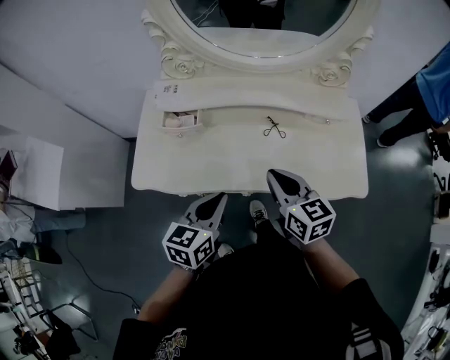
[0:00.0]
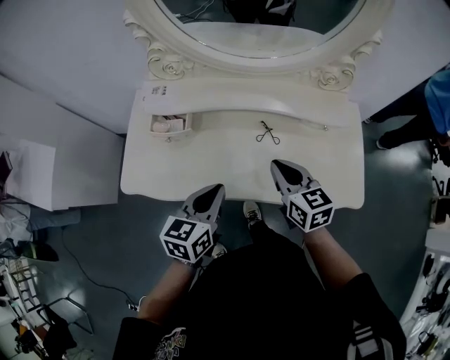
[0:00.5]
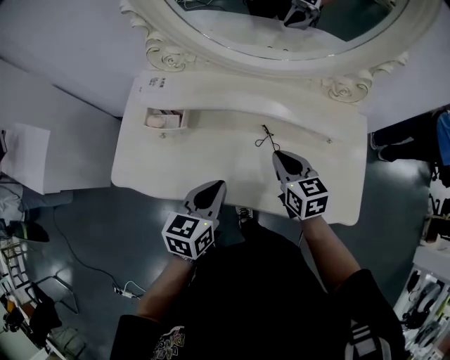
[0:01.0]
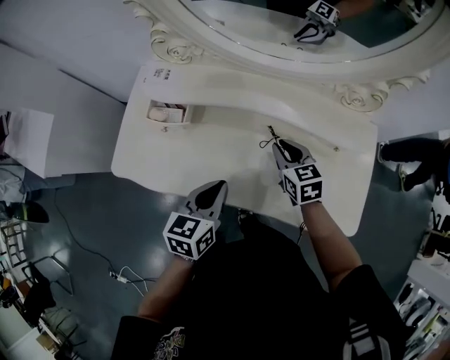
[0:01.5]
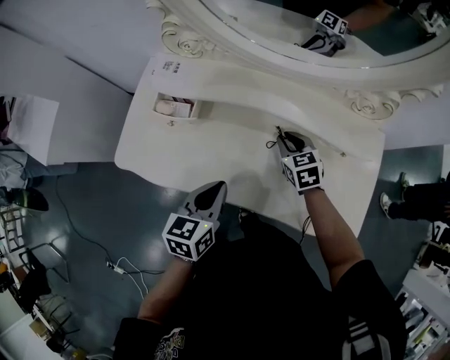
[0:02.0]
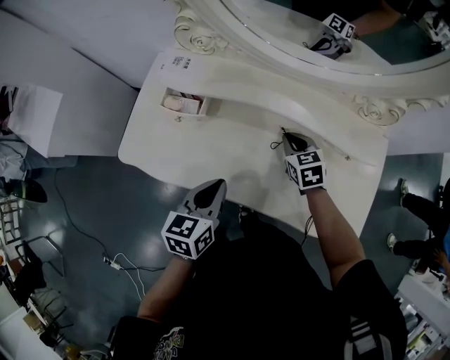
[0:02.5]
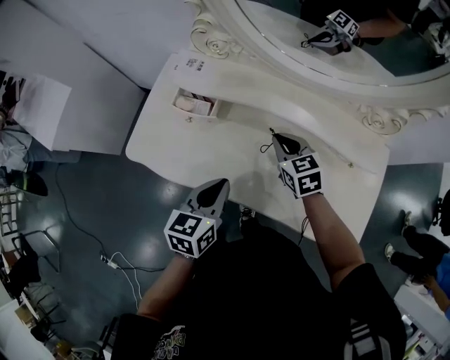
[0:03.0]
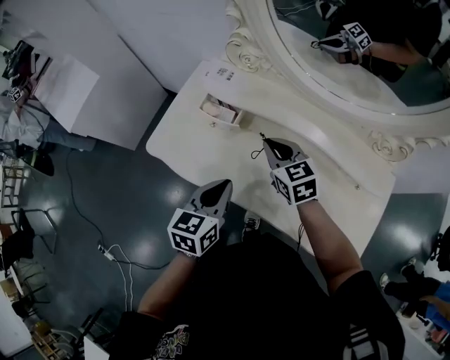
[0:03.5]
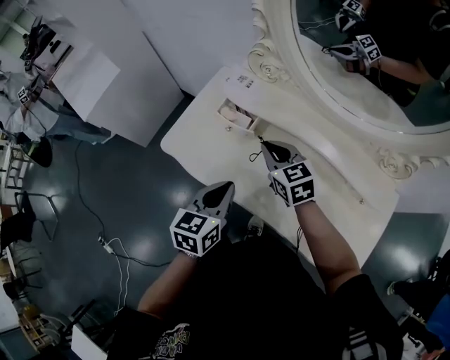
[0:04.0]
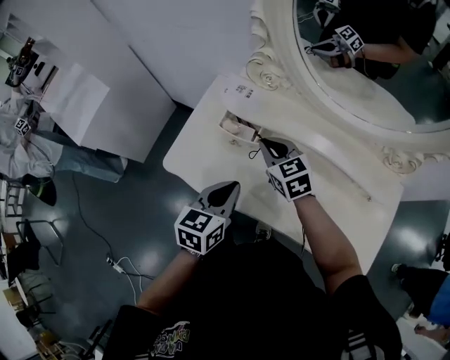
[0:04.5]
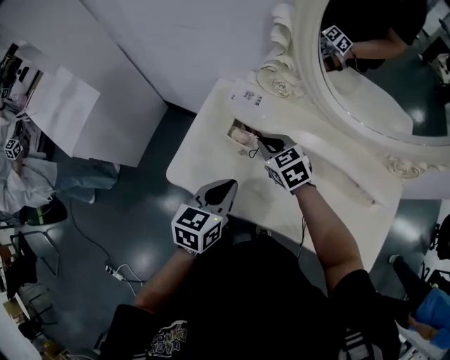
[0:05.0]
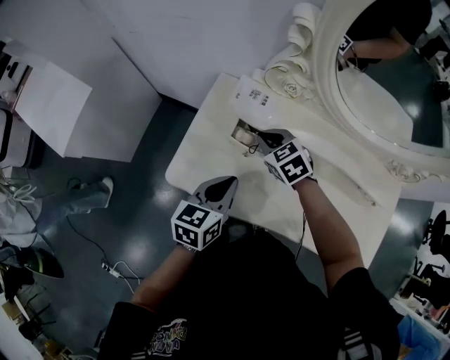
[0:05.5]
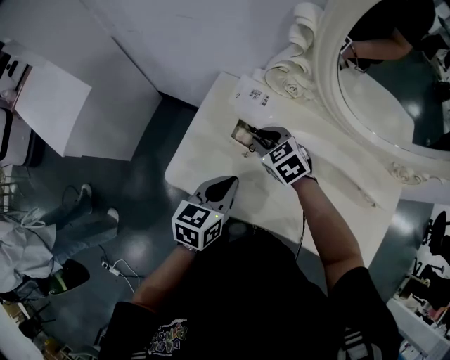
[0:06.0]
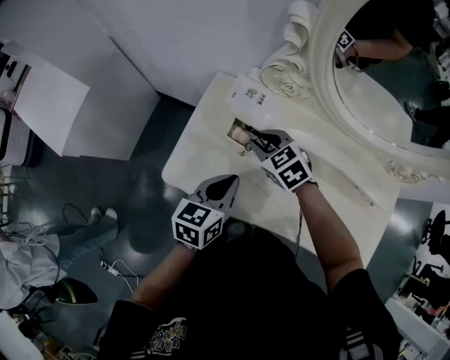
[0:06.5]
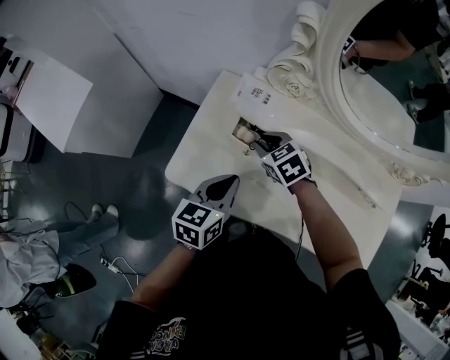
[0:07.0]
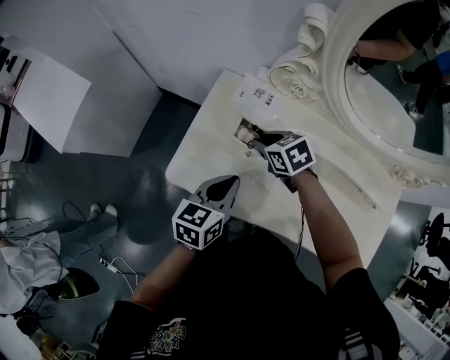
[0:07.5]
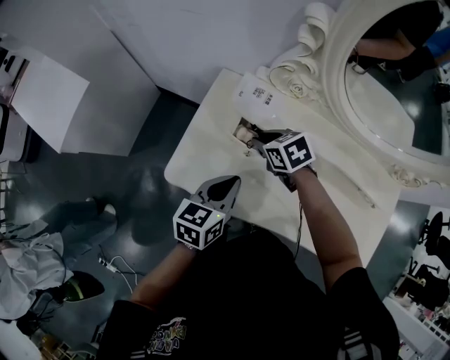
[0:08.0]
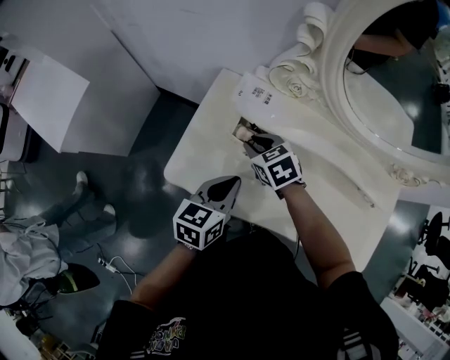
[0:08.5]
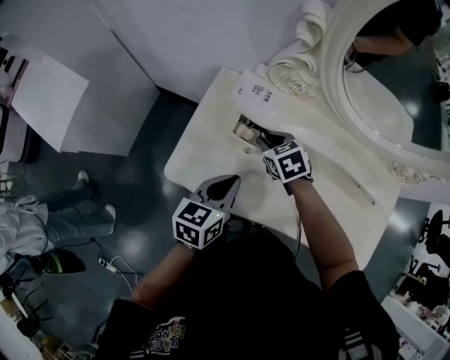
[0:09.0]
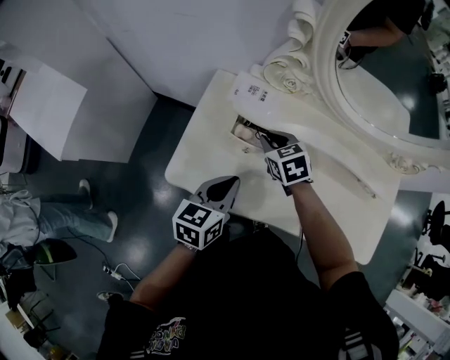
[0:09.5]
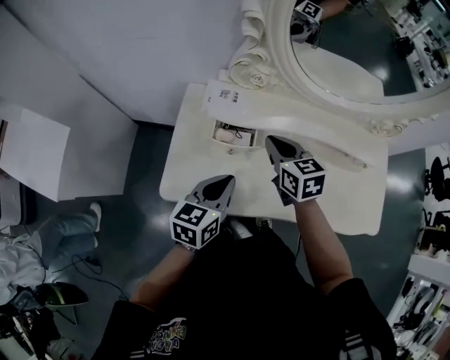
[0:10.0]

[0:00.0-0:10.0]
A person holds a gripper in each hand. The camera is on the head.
0:00.0 to 0:02.0: The right gripper shifts some 25 cm forward and downward, and rotates about 30 degrees. Meanwhile the left gripper heads forward and downward, covering about 10 cm.
0:02.0 to 0:04.0: The left gripper heads to the left and upward, covering about 10 cm; the right gripper moves to the left and upward, about 25 cm, and rotates roughly 30 degrees.
0:04.0 to 0:06.0: The left gripper shifts roughly 15 cm forward and to the left; the right gripper moves forward, to the left and downward, about 20 cm, and rotates approximately 20 degrees.
0:06.0 to 0:08.0: The right gripper turns by approximately 20 degrees.
0:08.0 to 0:10.0: The right gripper moves roughly 15 cm, and swivels roughly 40 degrees.

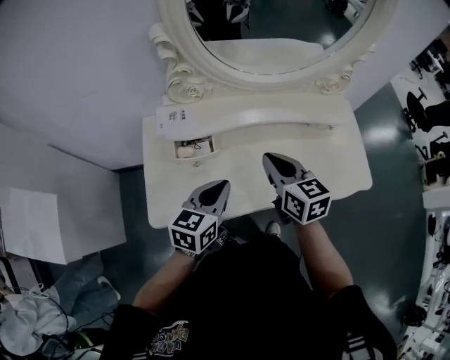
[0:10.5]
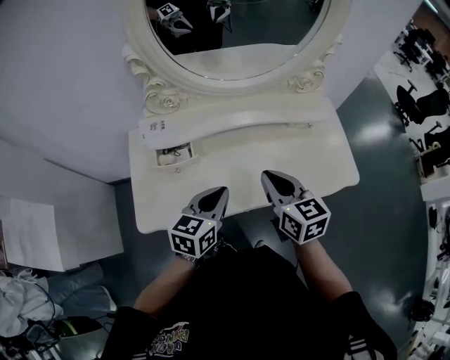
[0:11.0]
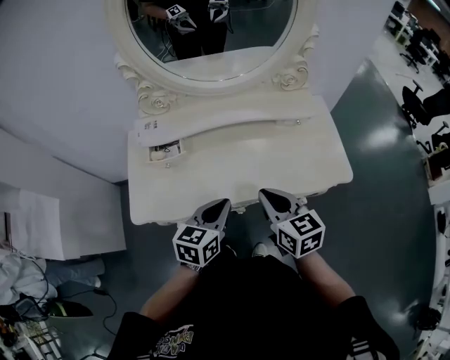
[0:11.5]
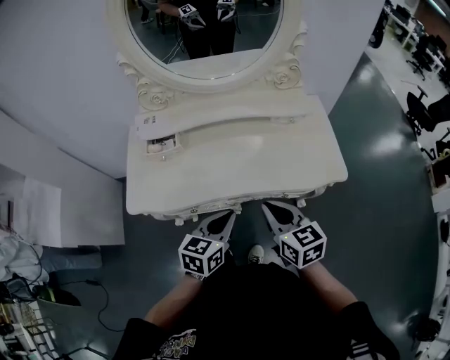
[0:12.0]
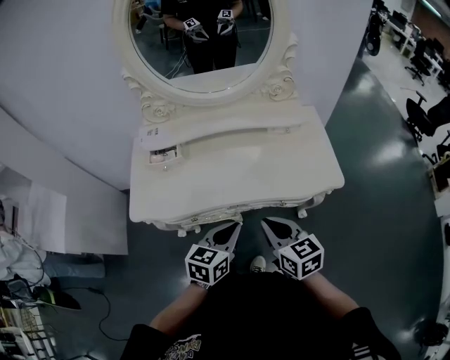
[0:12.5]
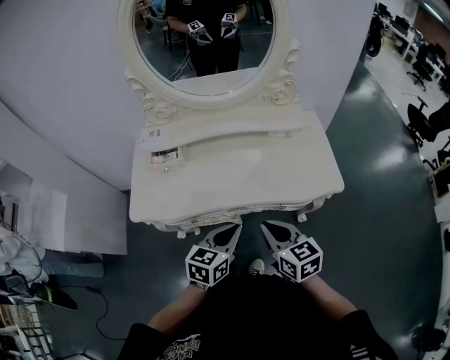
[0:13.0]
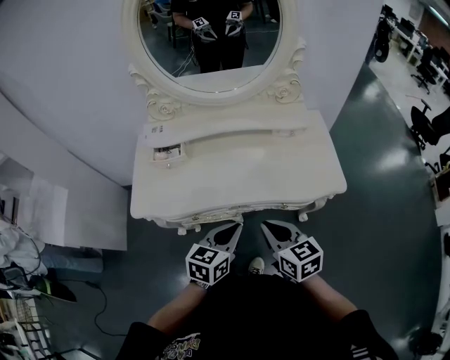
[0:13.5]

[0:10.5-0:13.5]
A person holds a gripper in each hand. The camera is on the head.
0:10.5 to 0:12.0: The left gripper heads to the right and backward, covering some 25 cm; the right gripper shifts approximately 25 cm backward and to the right.
0:12.0 to 0:13.5: The grippers move only a little.

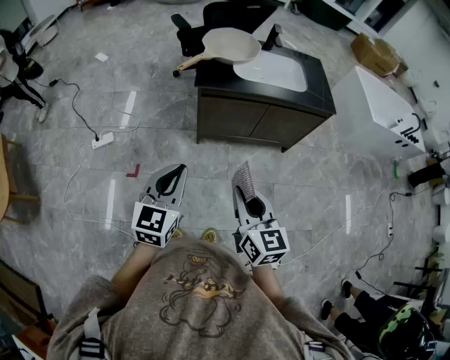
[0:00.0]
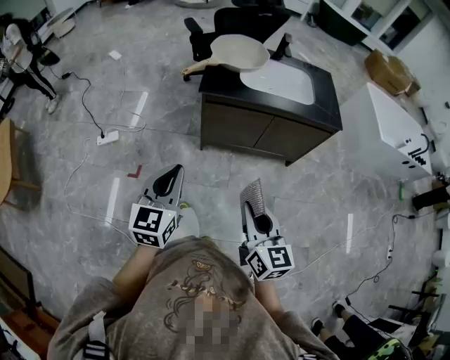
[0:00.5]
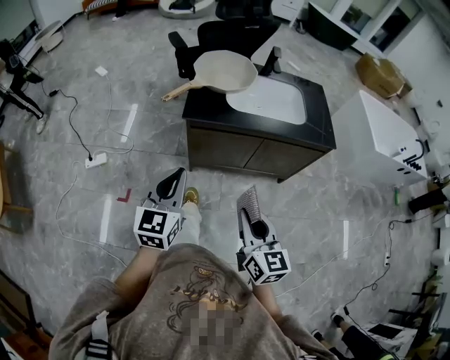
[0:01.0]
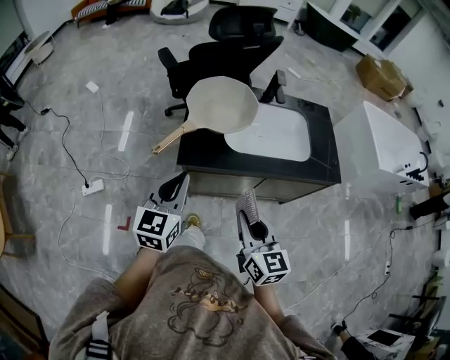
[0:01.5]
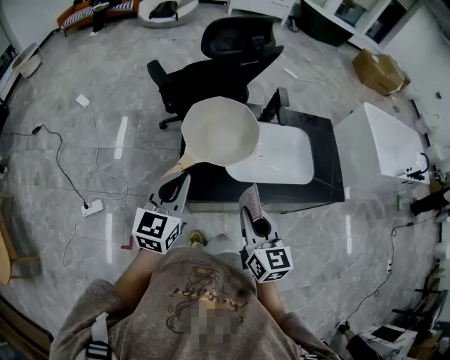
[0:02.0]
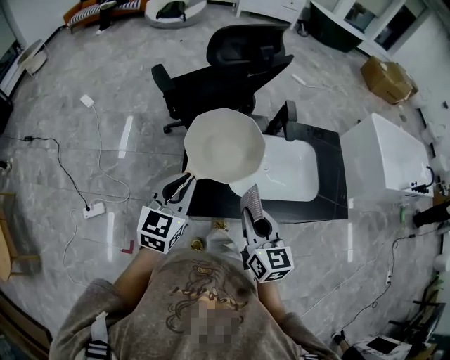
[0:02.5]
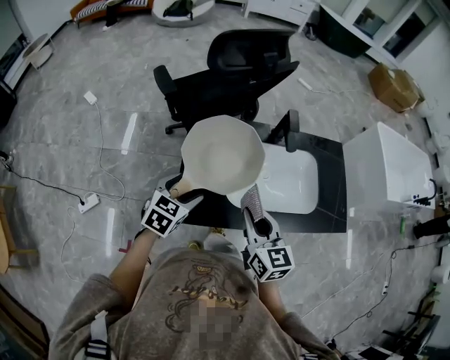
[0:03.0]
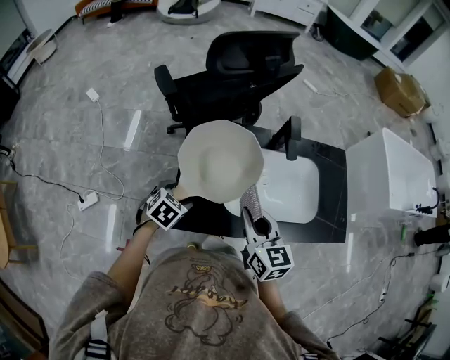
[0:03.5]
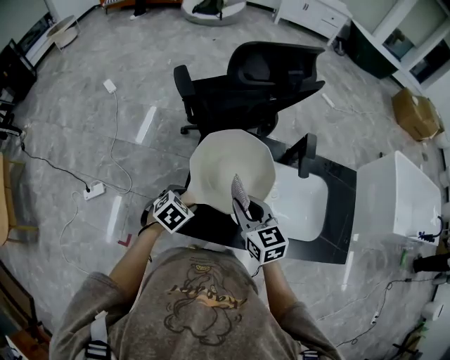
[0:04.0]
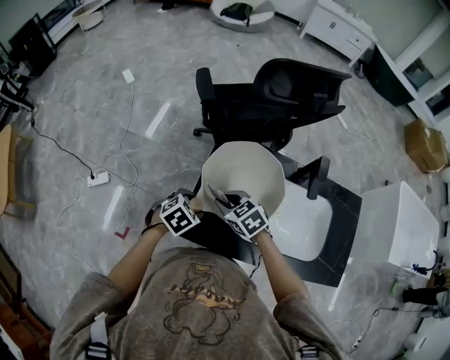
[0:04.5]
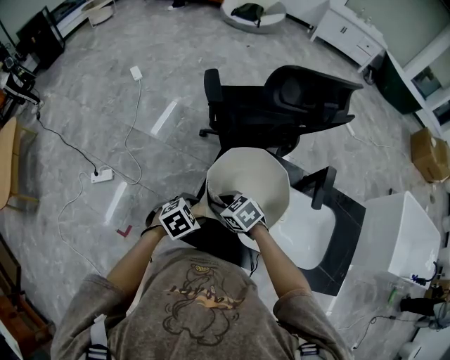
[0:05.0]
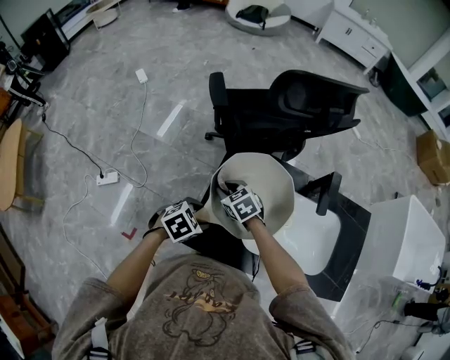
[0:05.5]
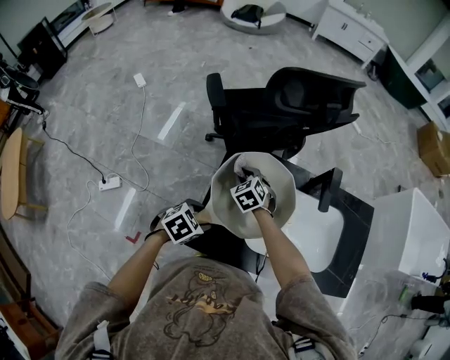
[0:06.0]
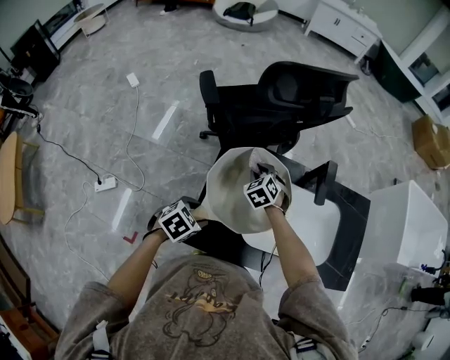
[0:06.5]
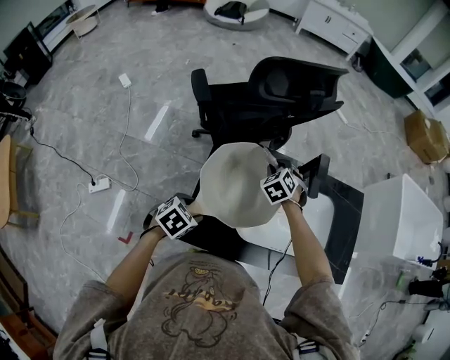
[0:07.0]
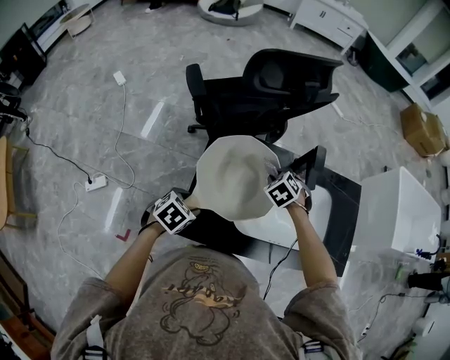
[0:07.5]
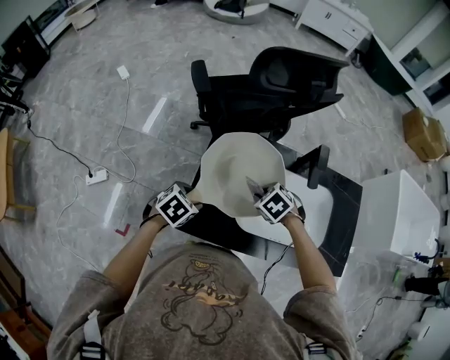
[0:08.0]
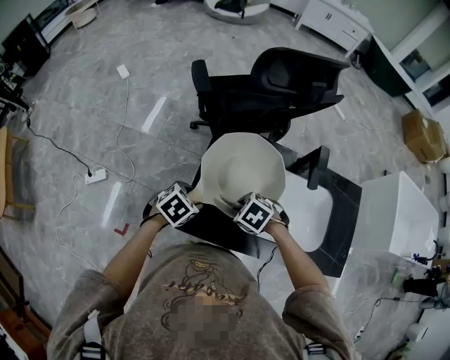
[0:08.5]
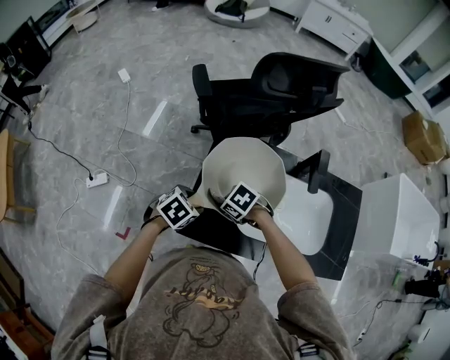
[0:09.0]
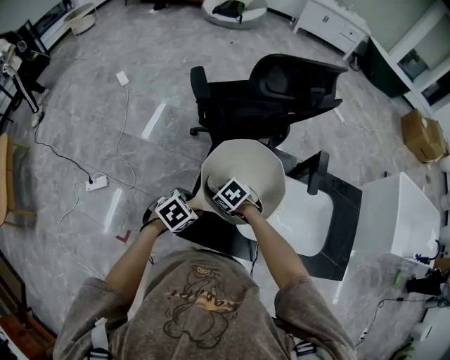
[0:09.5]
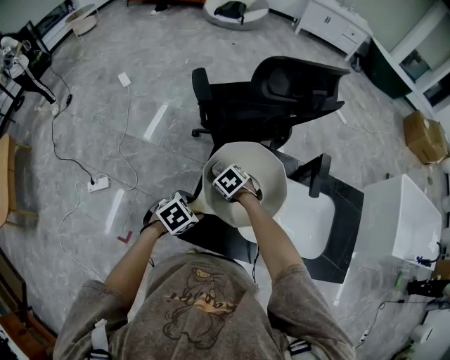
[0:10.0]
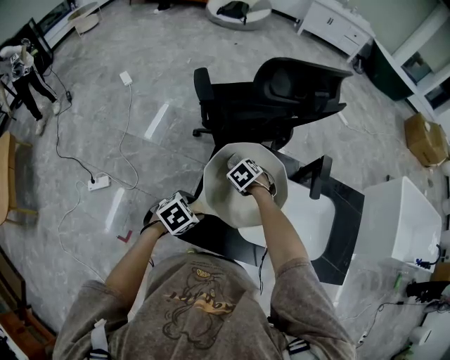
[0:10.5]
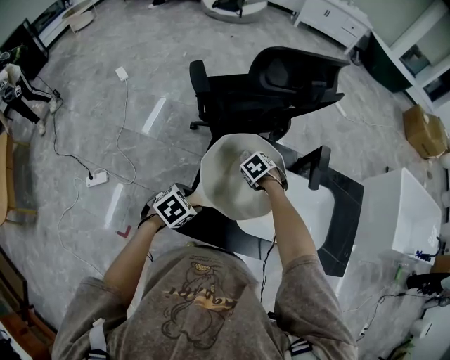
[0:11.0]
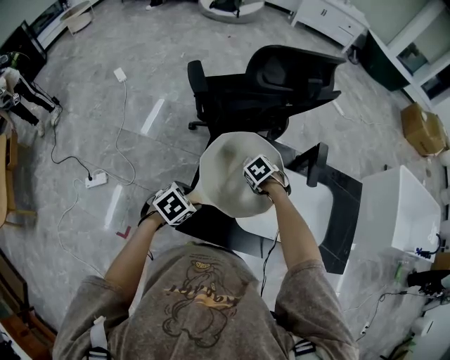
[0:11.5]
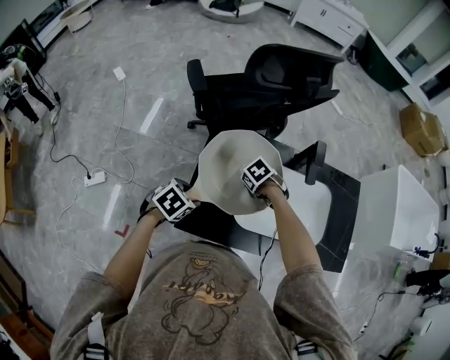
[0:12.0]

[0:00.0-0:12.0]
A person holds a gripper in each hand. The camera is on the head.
0:00.0 to 0:02.0: Both grippers are carried forward, some 50 cm.
0:02.0 to 0:04.0: The left gripper heads downward and forward, covering some 25 cm, tips its fingers downward by approximately 50 degrees, and opens up; the right gripper shifts approximately 20 cm forward, and changes its angle by roughly 30 degrees.
0:04.0 to 0:06.0: The right gripper shifts by roughly 25 cm, and swivels about 40 degrees.
0:06.0 to 0:08.0: The right gripper moves approximately 20 cm, and swivels about 30 degrees.
0:08.0 to 0:10.0: The right gripper changes place by about 20 cm.
0:10.0 to 0:12.0: The right gripper shifts by about 15 cm, and swivels some 20 degrees.

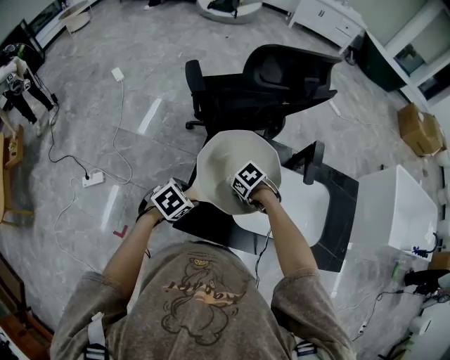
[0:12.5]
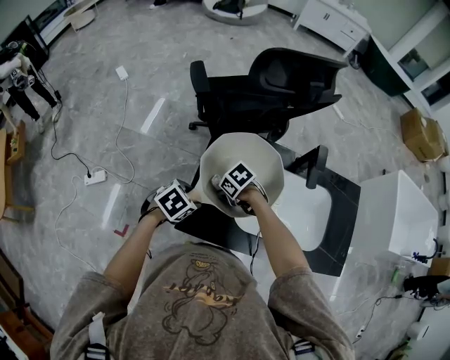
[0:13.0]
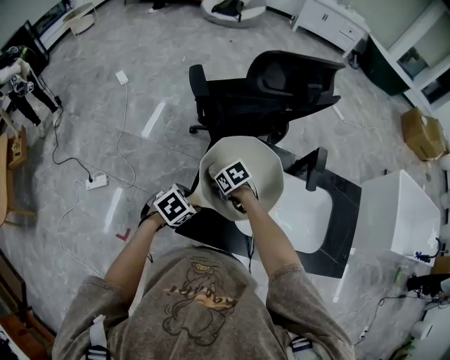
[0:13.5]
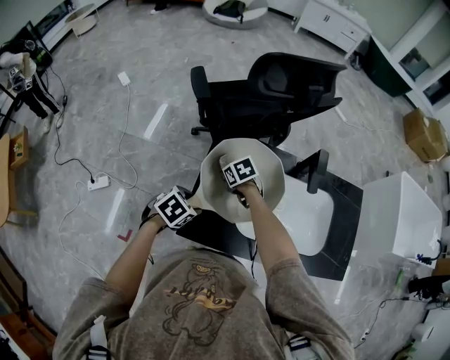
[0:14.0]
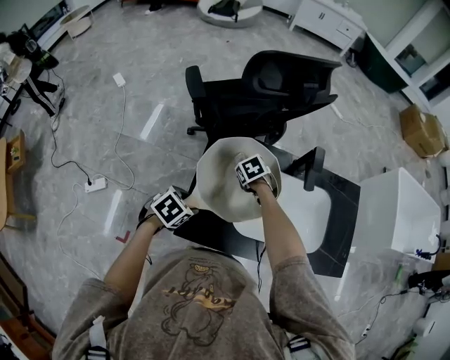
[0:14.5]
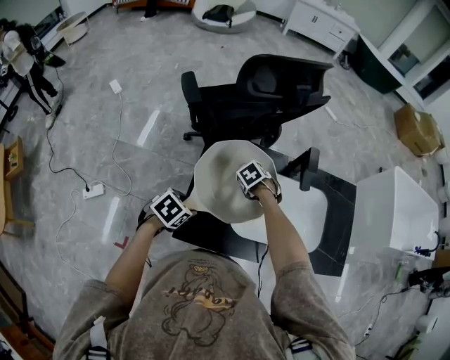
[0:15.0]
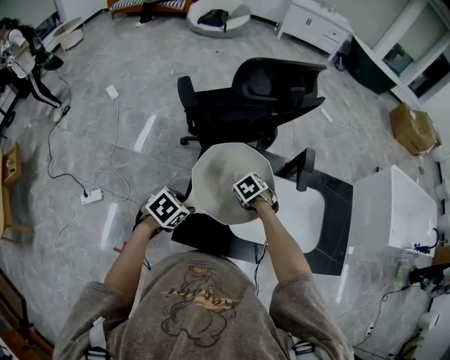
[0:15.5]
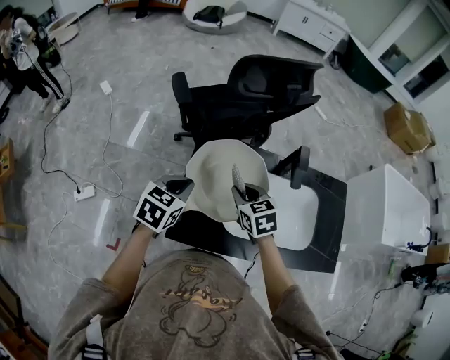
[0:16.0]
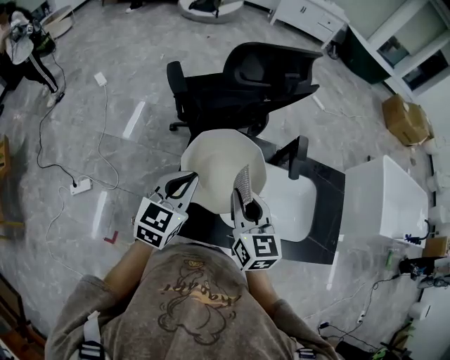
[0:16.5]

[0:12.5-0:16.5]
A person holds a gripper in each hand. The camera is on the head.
0:12.5 to 0:14.5: The right gripper moves some 10 cm, and rotates some 30 degrees.
0:14.5 to 0:16.5: The two grippers go some 20 cm upward. The right gripper tilts its fingers about 60 degrees upward; the left gripper points its fingers about 40 degrees further upward, and closes up.
